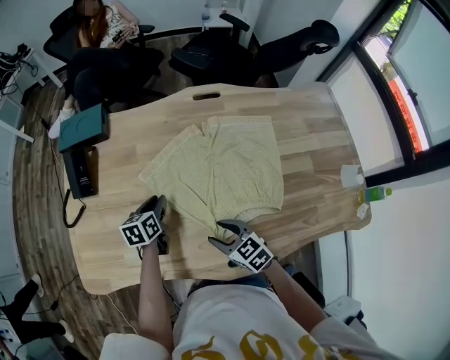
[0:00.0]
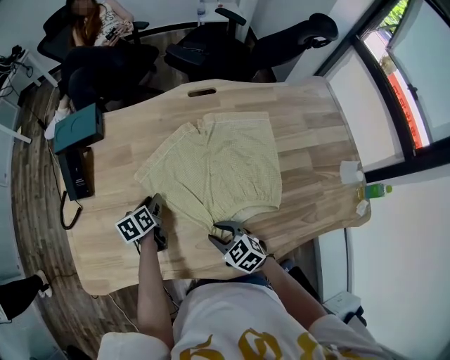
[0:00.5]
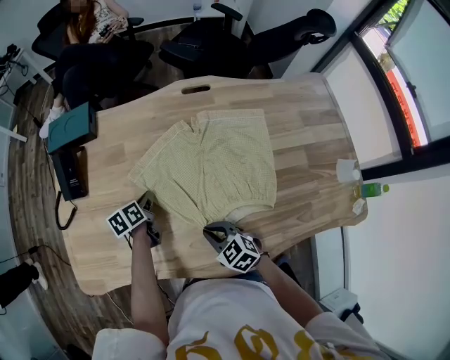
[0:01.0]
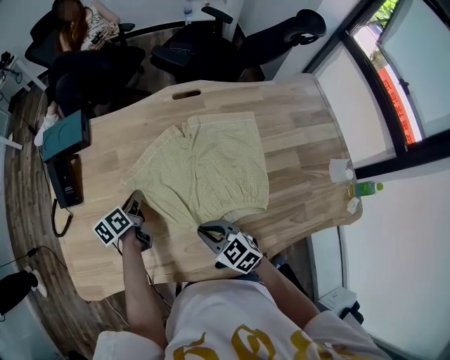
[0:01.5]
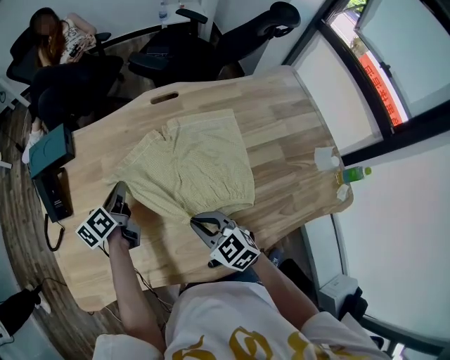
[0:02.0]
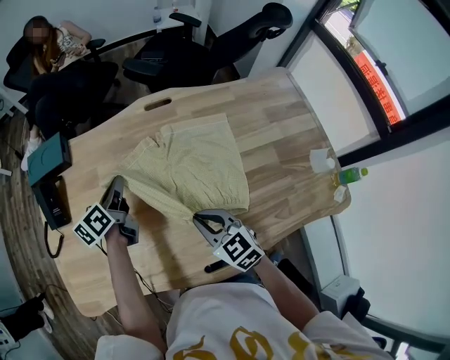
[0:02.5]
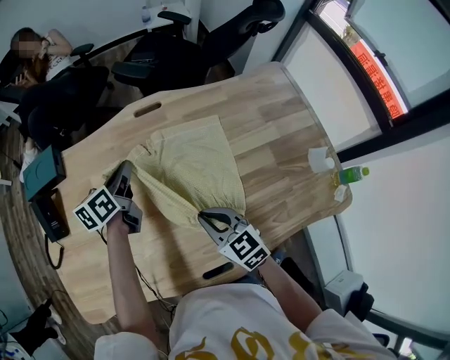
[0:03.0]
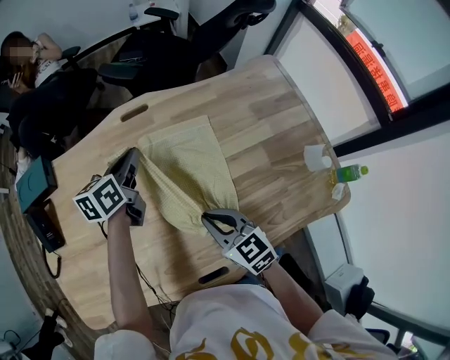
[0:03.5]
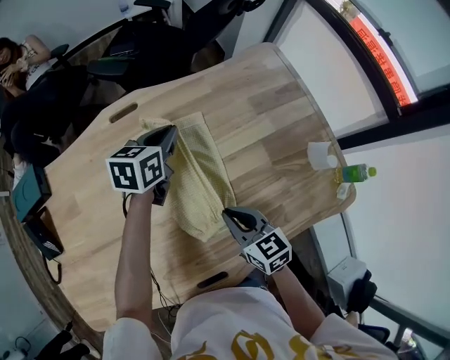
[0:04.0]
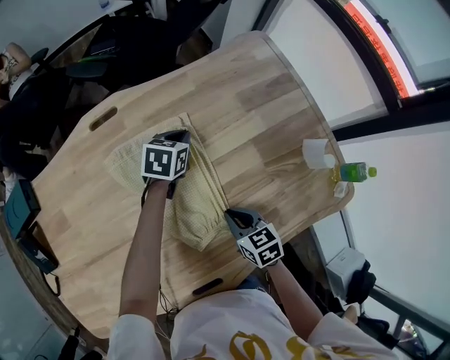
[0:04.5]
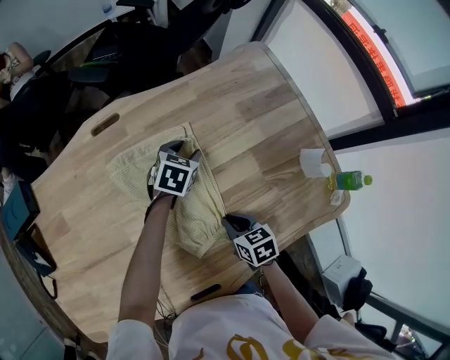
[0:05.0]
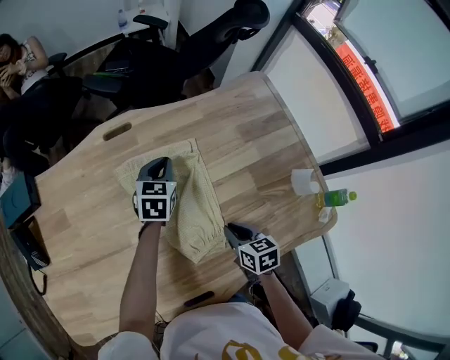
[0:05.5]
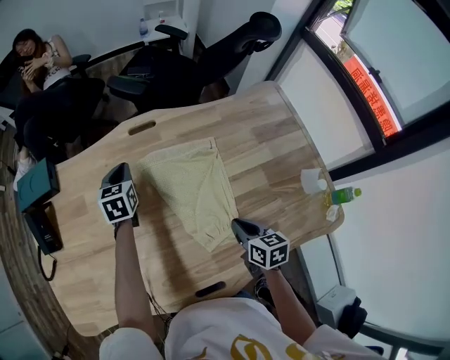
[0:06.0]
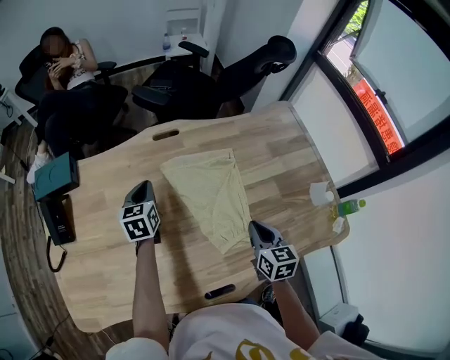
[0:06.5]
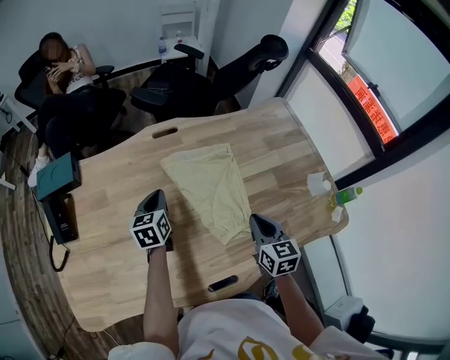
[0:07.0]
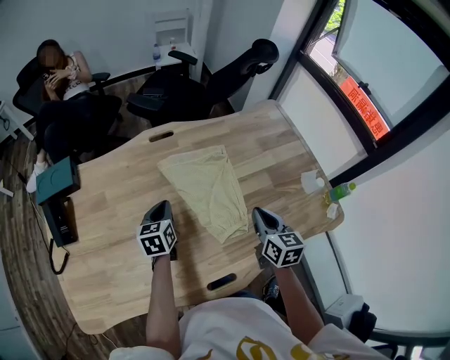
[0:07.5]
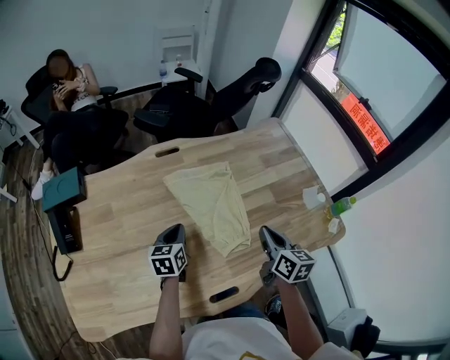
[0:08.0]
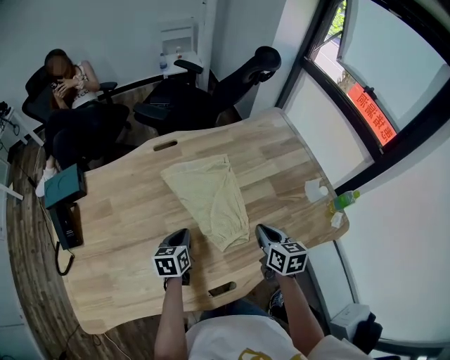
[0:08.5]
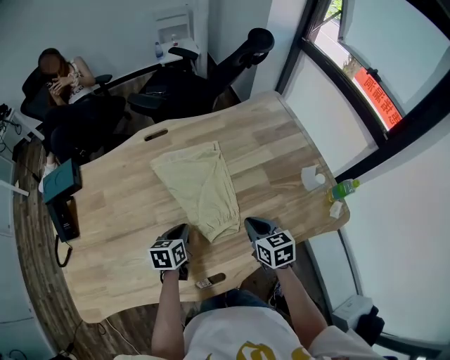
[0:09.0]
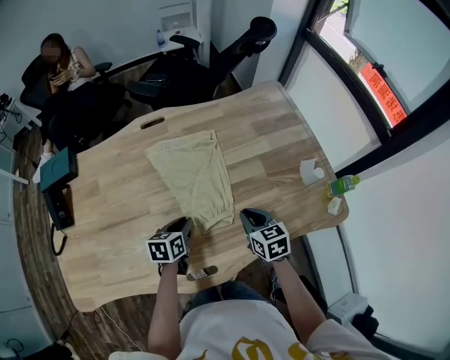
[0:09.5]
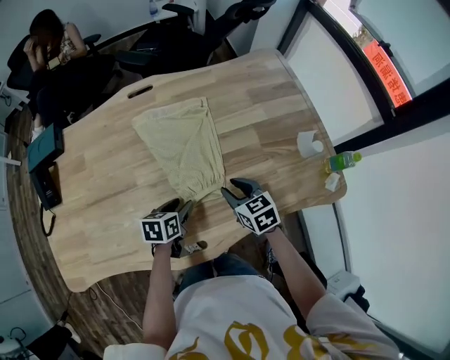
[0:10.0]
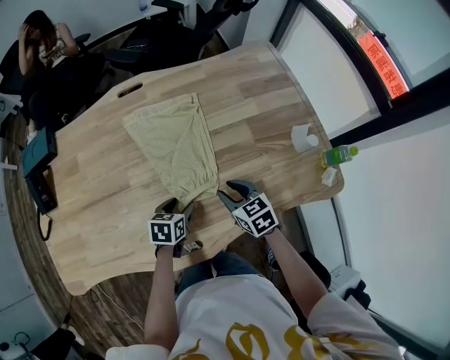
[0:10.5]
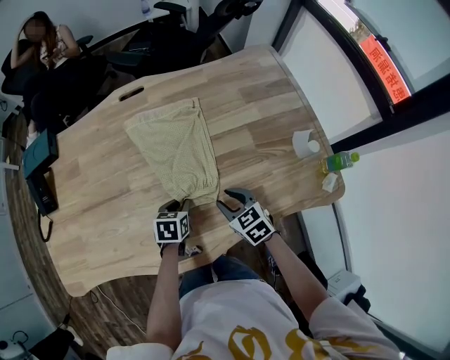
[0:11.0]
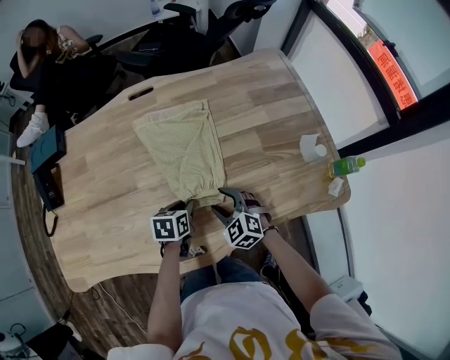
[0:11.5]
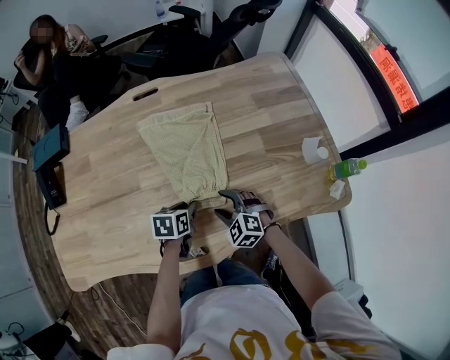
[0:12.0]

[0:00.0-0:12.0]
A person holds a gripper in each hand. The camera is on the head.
0:00.0 to 0:02.0: The right gripper moves upward, approximately 5 cm, and closes up; the left gripper heads upward and forward, covering about 10 cm, and rotates roughly 20 degrees.
0:02.0 to 0:04.0: The right gripper is displaced to the right by approximately 20 cm, and swivels about 30 degrees; the left gripper shifts roughly 35 cm to the right, and changes its angle by roughly 40 degrees.
0:04.0 to 0:06.0: The right gripper reaches some 10 cm downward, then returns. Meanwhile the left gripper moves to the left, roughly 20 cm, changes its angle by about 30 degrees, and opens, then closes once more.
0:06.0 to 0:08.0: The right gripper shifts about 10 cm upward, and rotates about 20 degrees. Meanwhile the left gripper travels backward by some 20 cm, and turns by some 20 degrees.
0:08.0 to 0:10.0: The right gripper goes approximately 10 cm downward, rotates about 40 degrees, and opens; the left gripper is displaced to the right, backward and downward by approximately 15 cm, changes its angle by approximately 20 degrees, and opens.
0:10.0 to 0:12.0: The left gripper closes its fingers. Meanwhile the right gripper travels downward and to the left by some 10 cm, rotates around the line of its fingers by about 50 degrees, counterclockwise from behind, and opens up.

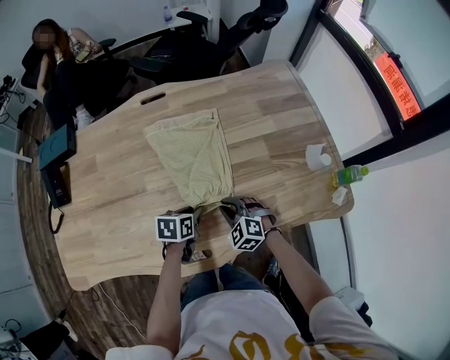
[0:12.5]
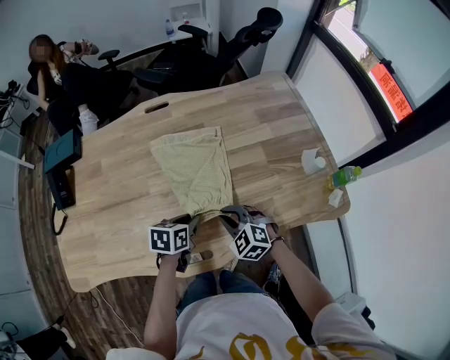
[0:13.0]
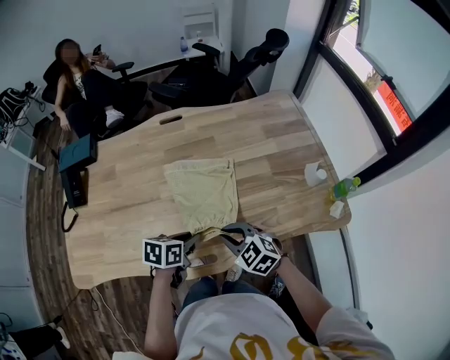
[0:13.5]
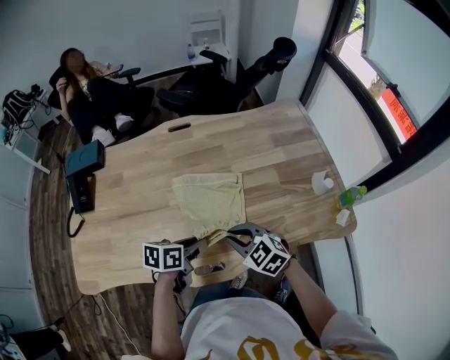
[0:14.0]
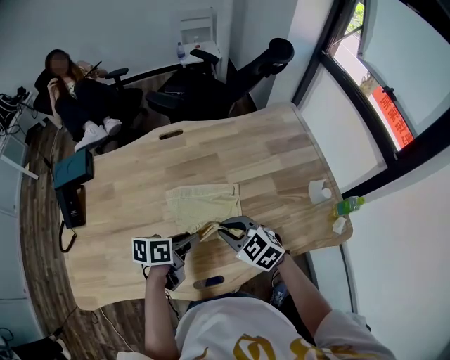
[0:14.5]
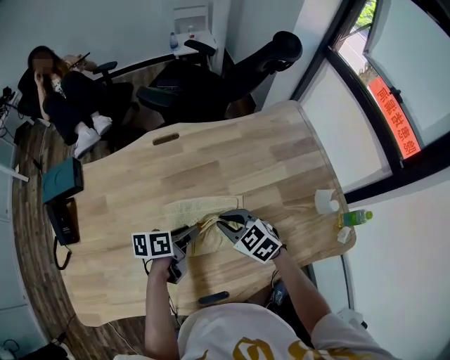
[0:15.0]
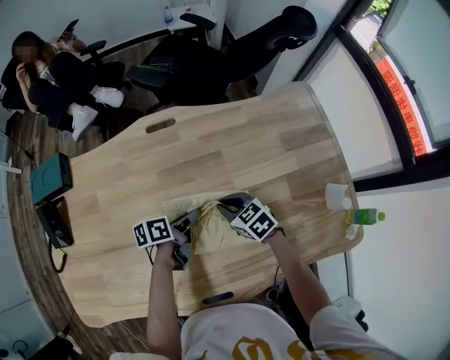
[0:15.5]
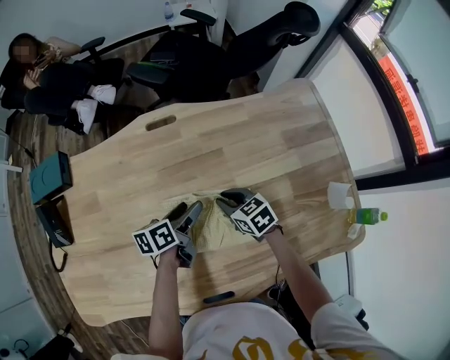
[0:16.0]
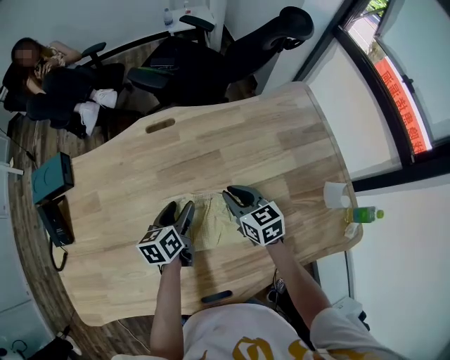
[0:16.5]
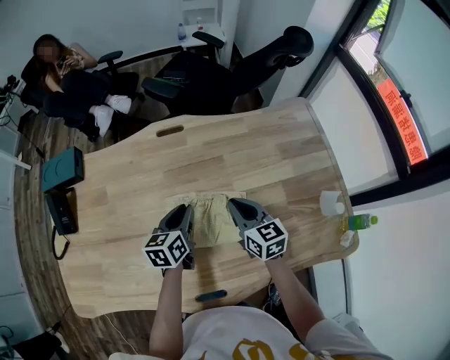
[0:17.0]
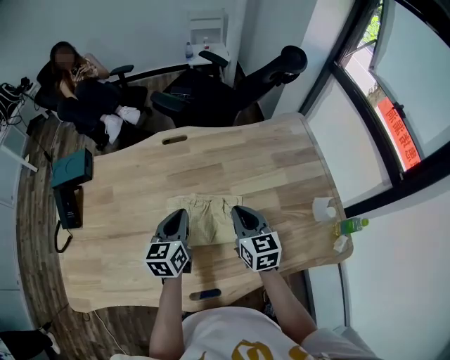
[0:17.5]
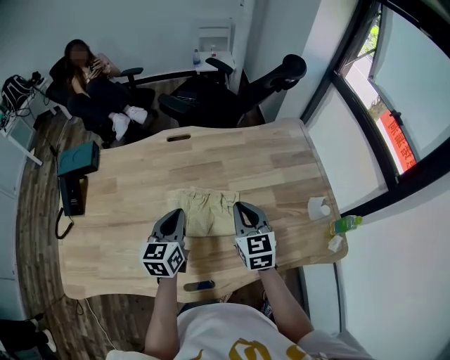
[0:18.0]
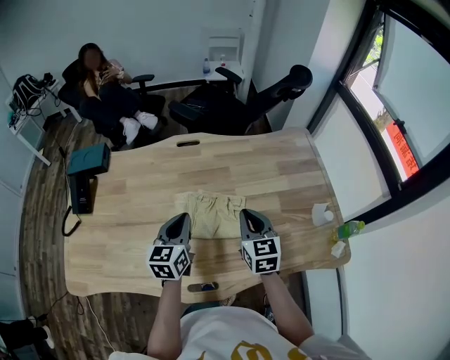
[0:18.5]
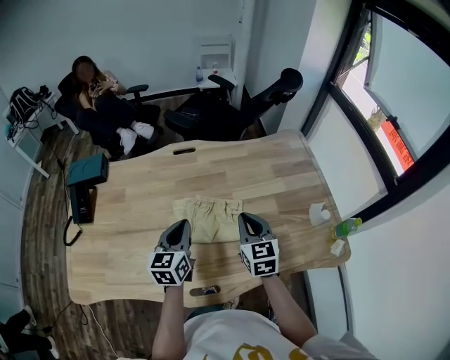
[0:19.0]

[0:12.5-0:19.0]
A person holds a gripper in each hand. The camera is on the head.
0:12.5 to 0:14.5: The two grippers go roughly 15 cm upward. The right gripper changes its angle by approximately 20 degrees. Meanwhile the left gripper changes its angle by approximately 20 degrees.
0:14.5 to 0:17.0: Both grippers move forward, about 15 cm. The left gripper rotates approximately 30 degrees, and opens, then closes again. The right gripper changes its angle by approximately 40 degrees.
0:17.0 to 0:19.0: The right gripper goes some 10 cm backward and upward, while the left gripper heads upward and backward, covering about 15 cm, and turns by roughly 20 degrees.

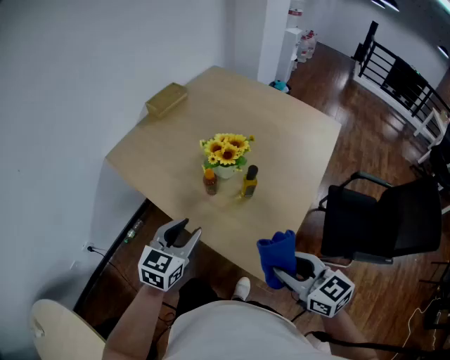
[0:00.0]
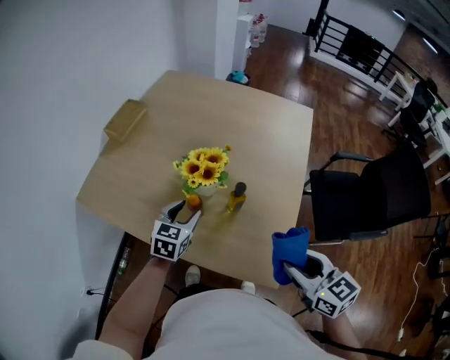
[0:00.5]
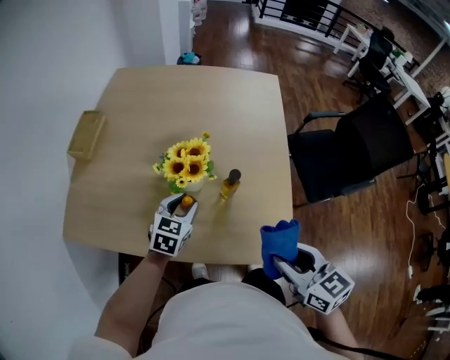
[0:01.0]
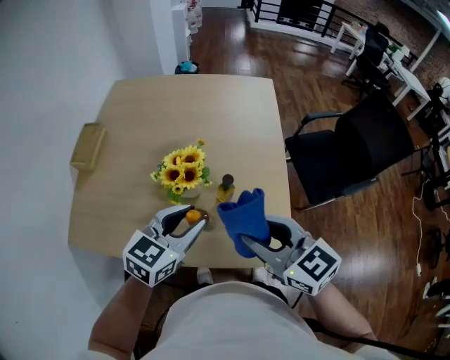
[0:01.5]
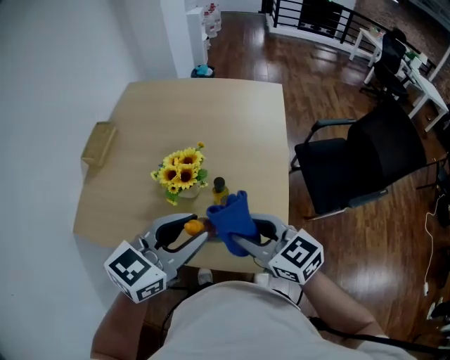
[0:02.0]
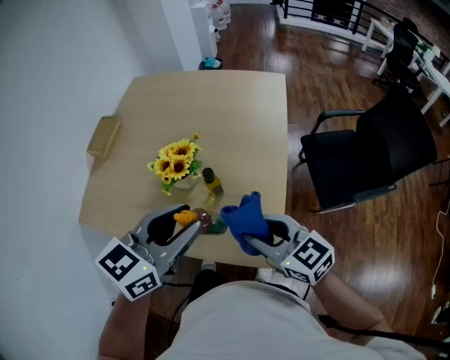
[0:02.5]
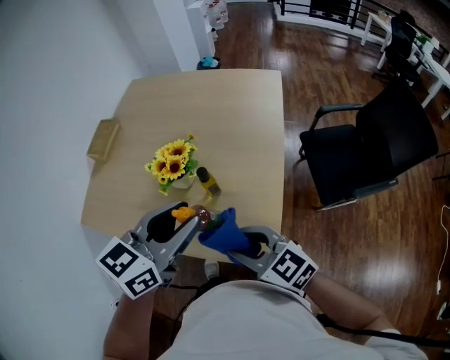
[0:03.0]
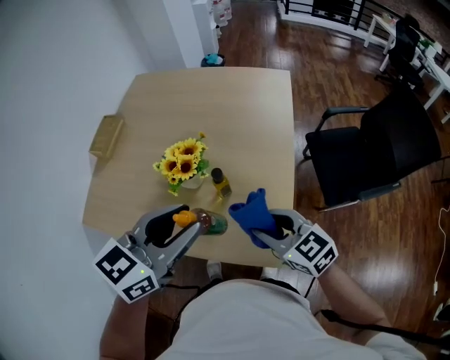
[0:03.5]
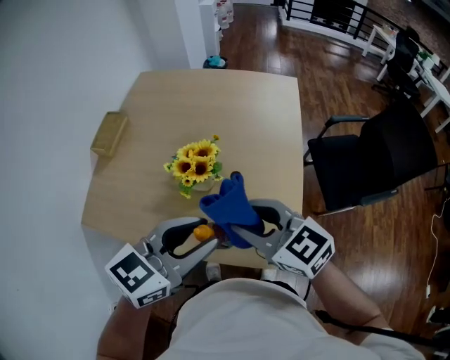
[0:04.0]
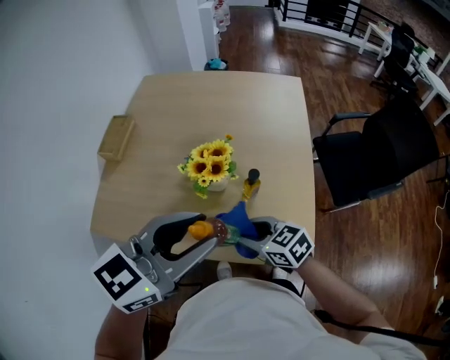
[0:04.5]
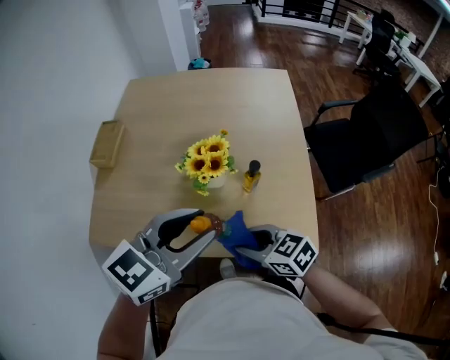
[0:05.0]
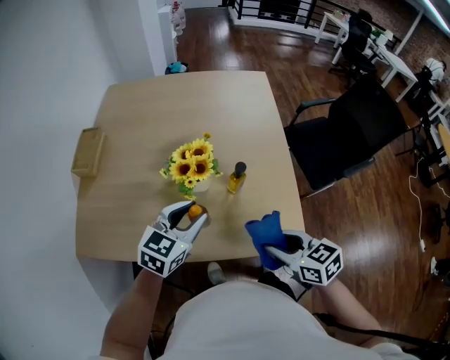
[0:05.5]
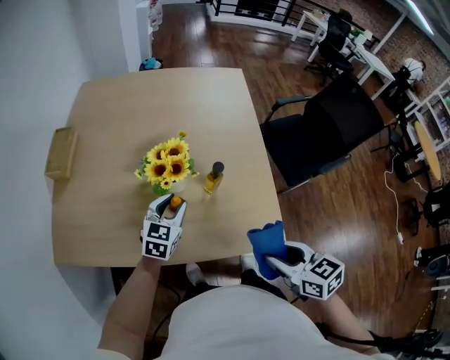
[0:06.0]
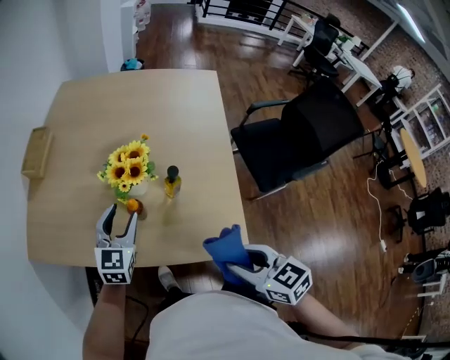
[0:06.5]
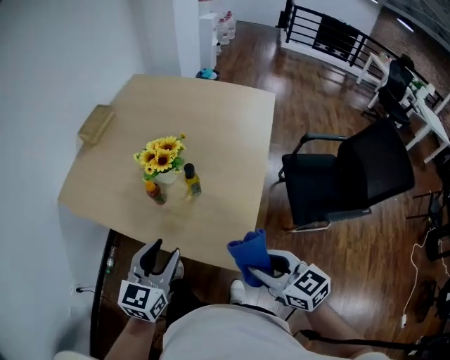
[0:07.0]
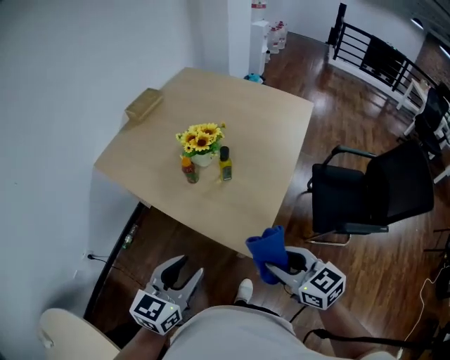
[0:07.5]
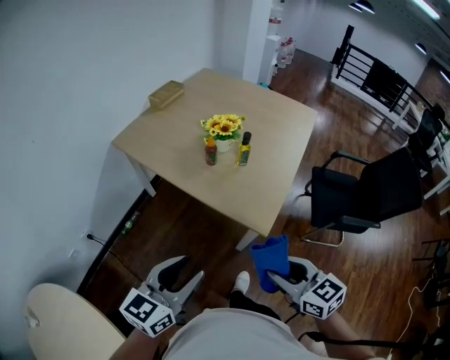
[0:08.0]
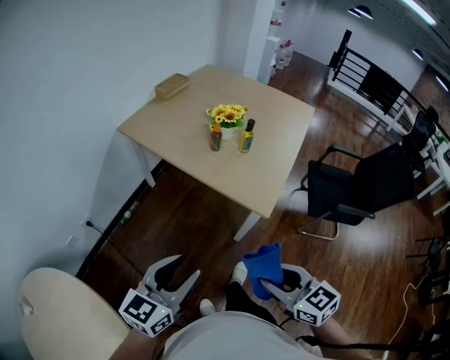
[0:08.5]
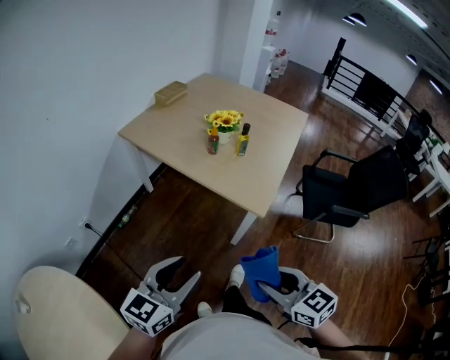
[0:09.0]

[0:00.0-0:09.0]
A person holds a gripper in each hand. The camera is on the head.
0:00.0 to 0:02.0: The left gripper shifts some 10 cm upward, and rotates about 40 degrees, while the right gripper changes place by about 15 cm.
0:02.0 to 0:04.5: The left gripper is displaced to the left and upward by roughly 10 cm; the right gripper is displaced downward and to the left by some 15 cm.
0:04.5 to 0:07.0: The left gripper is displaced downward by some 15 cm, and changes its angle by some 40 degrees. The right gripper shifts by roughly 25 cm.
0:07.0 to 0:09.0: The right gripper is displaced backward and to the left by roughly 35 cm. Meanwhile the left gripper is displaced backward by roughly 40 cm.
